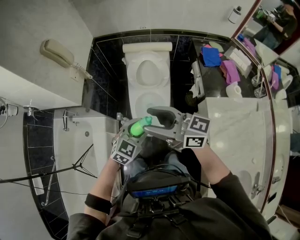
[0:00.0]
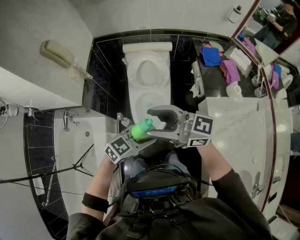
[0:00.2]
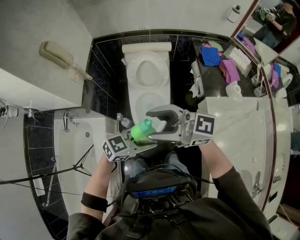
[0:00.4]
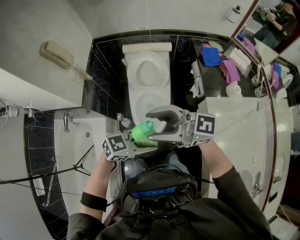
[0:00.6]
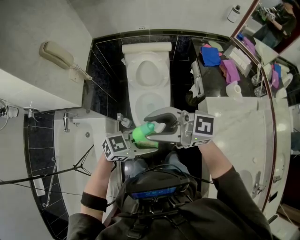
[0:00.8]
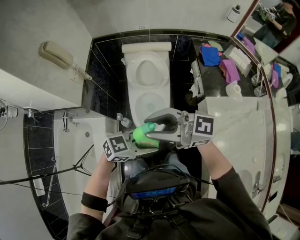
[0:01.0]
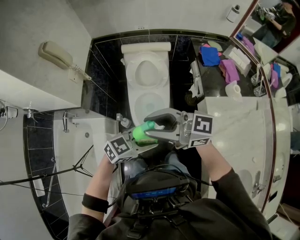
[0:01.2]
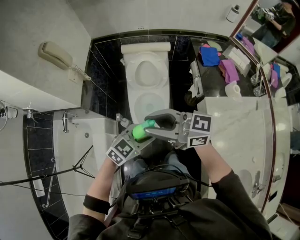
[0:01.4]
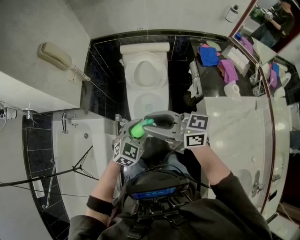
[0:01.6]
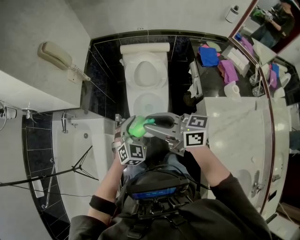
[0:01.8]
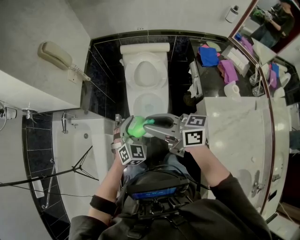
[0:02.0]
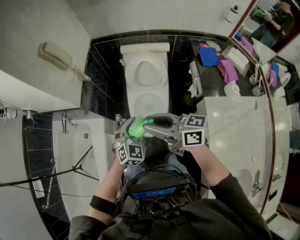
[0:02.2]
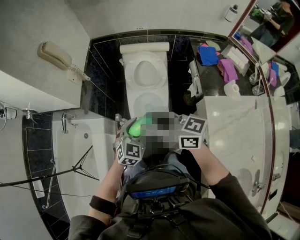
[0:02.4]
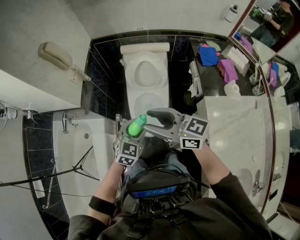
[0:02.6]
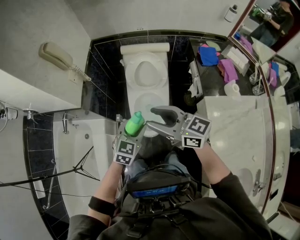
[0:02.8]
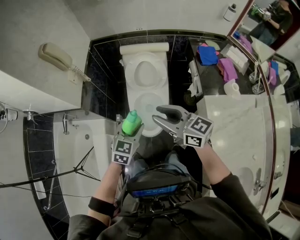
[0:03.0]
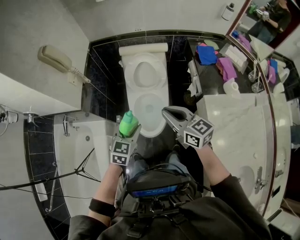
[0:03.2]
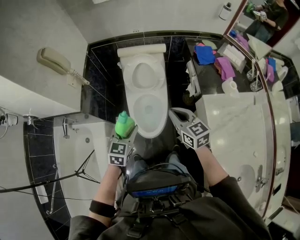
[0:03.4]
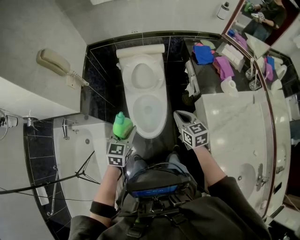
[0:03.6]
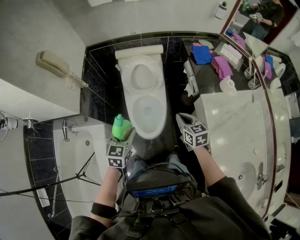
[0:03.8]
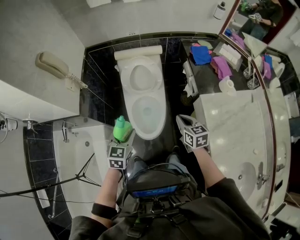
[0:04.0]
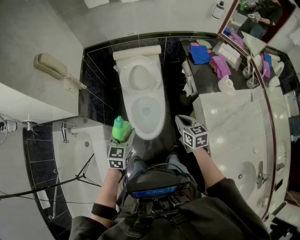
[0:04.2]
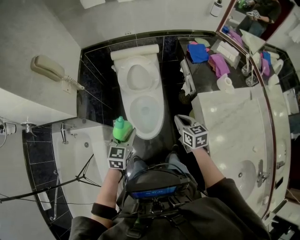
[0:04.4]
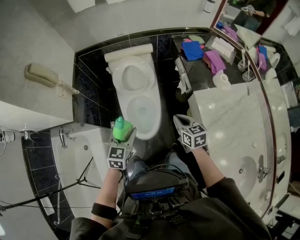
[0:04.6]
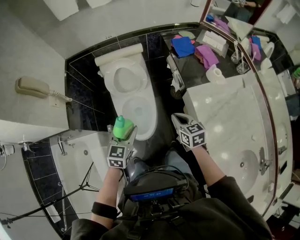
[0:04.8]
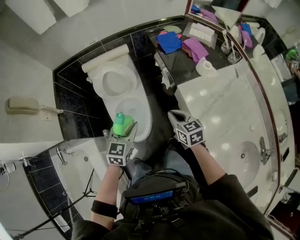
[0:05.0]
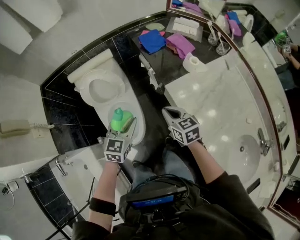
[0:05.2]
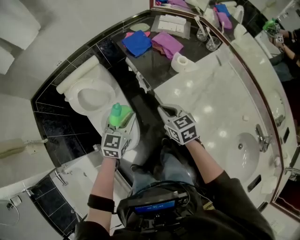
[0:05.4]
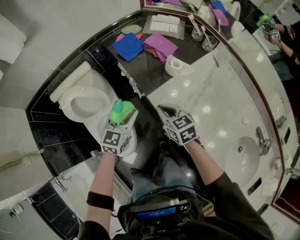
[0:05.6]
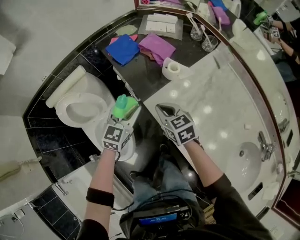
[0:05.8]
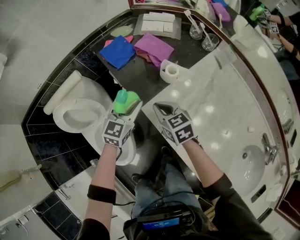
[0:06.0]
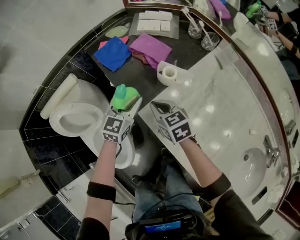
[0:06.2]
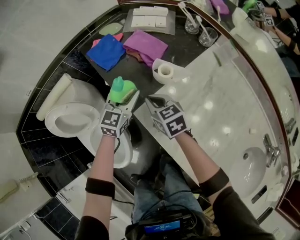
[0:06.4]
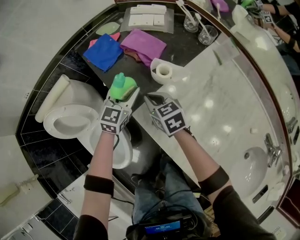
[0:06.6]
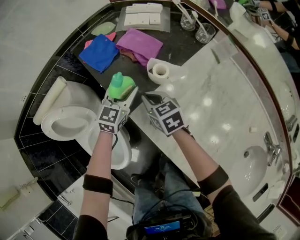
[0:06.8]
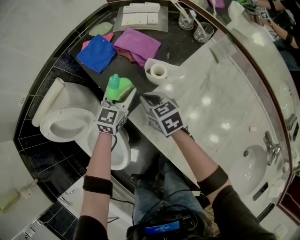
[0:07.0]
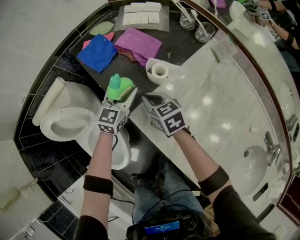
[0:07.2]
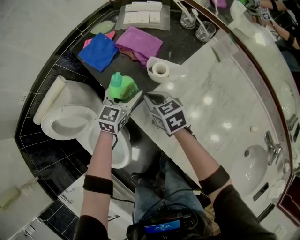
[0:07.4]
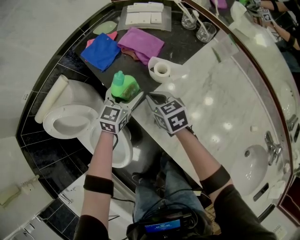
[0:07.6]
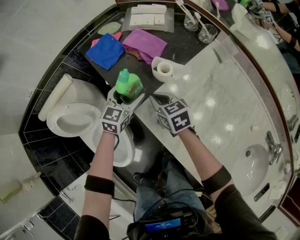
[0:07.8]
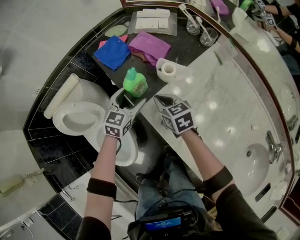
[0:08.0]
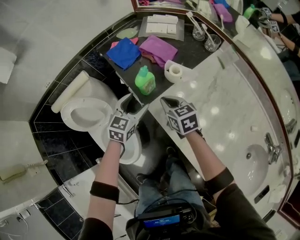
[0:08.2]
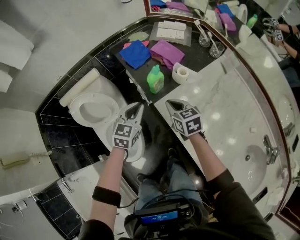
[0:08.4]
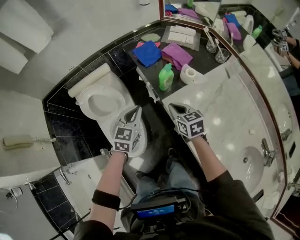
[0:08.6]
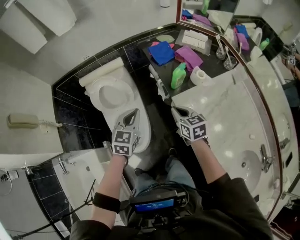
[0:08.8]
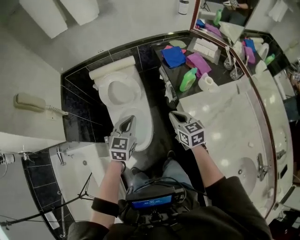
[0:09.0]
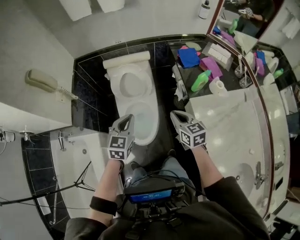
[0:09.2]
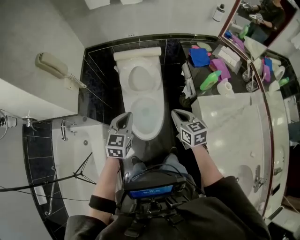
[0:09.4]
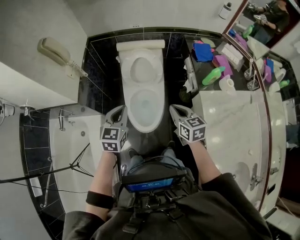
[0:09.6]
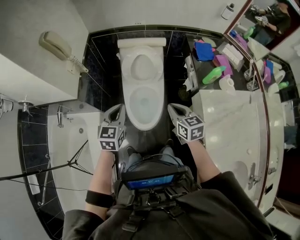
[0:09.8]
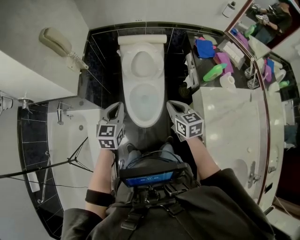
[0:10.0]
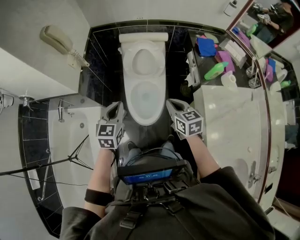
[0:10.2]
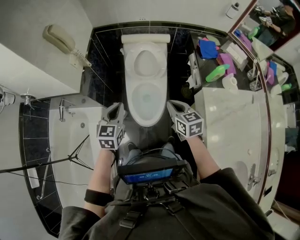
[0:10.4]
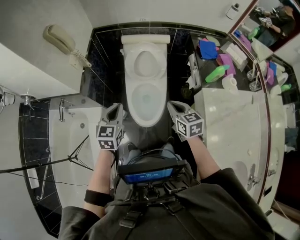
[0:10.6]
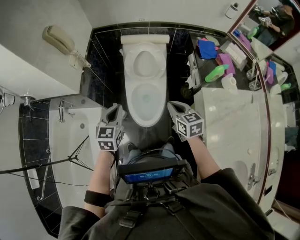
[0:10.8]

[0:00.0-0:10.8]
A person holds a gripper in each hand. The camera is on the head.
0:00.0 to 0:01.6: The right gripper closes its fingers.
0:01.6 to 0:03.0: The right gripper changes place by some 5 cm.
0:03.0 to 0:04.6: The right gripper heads downward and to the right, covering roughly 25 cm, turns by about 40 degrees, and closes.
0:04.6 to 0:06.2: The right gripper shifts by about 35 cm; the left gripper shifts by approximately 50 cm, and turns by approximately 40 degrees.
0:06.2 to 0:07.8: The left gripper moves roughly 5 cm, and opens up.
0:07.8 to 0:09.2: The left gripper ends up roughly 50 cm from where it was, turns by approximately 40 degrees, and closes its fingers. The right gripper changes place by some 35 cm, and rotates approximately 20 degrees.
0:09.2 to 0:10.8: Both grippers travel together to the left, roughly 15 cm.

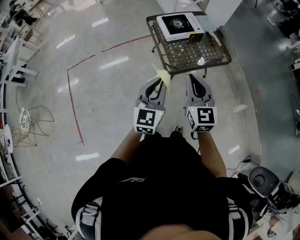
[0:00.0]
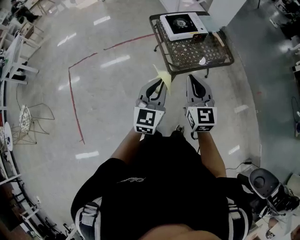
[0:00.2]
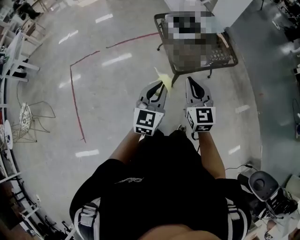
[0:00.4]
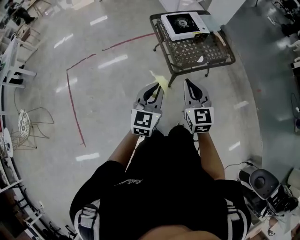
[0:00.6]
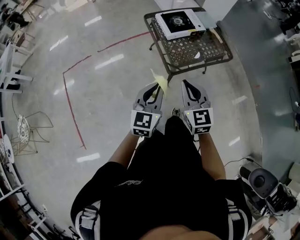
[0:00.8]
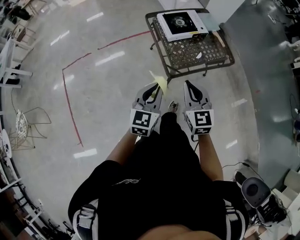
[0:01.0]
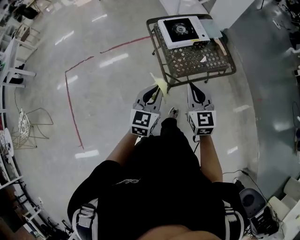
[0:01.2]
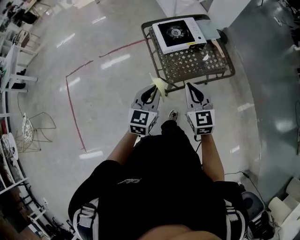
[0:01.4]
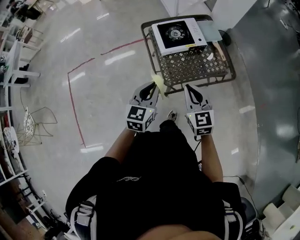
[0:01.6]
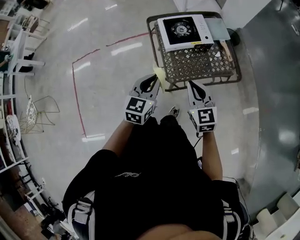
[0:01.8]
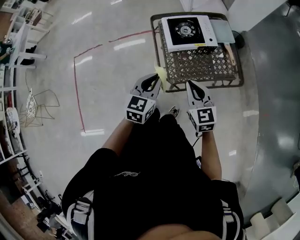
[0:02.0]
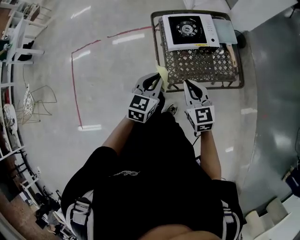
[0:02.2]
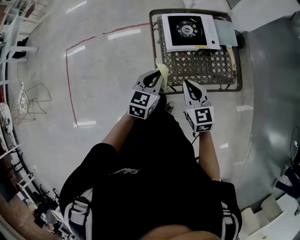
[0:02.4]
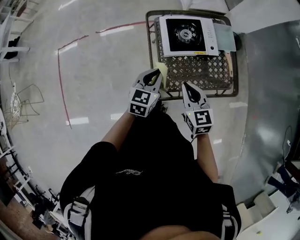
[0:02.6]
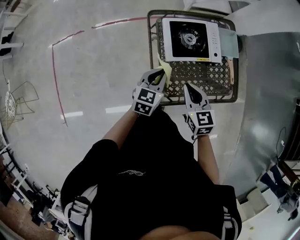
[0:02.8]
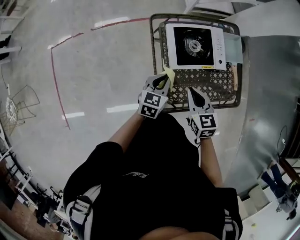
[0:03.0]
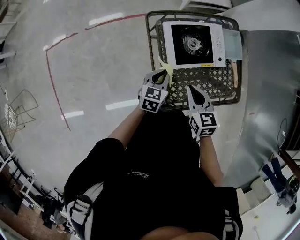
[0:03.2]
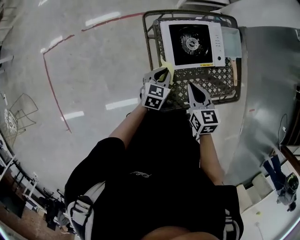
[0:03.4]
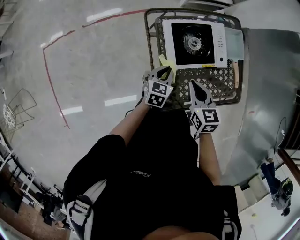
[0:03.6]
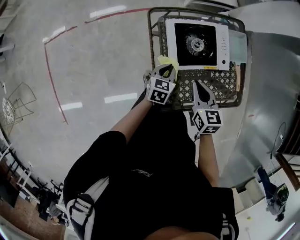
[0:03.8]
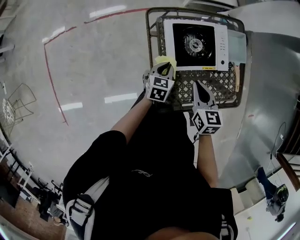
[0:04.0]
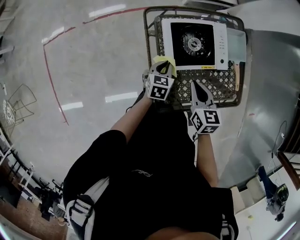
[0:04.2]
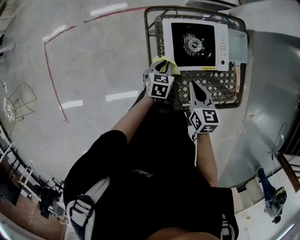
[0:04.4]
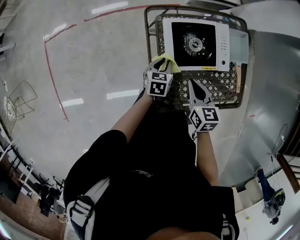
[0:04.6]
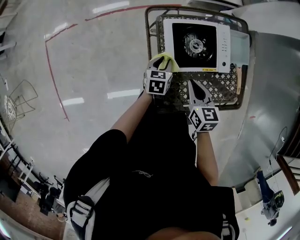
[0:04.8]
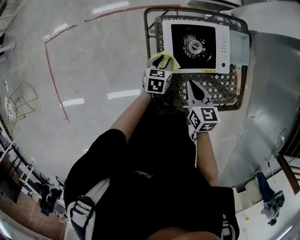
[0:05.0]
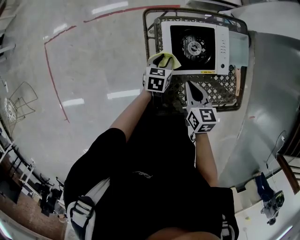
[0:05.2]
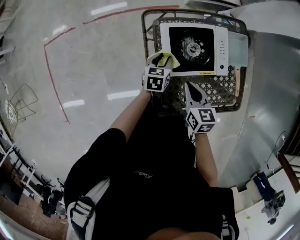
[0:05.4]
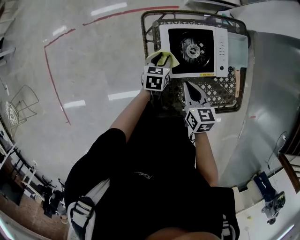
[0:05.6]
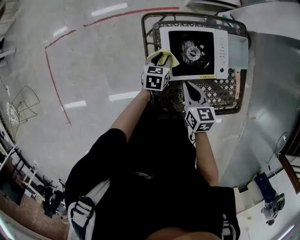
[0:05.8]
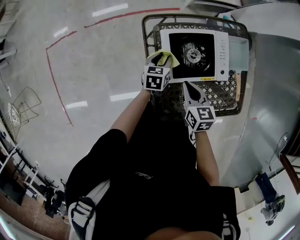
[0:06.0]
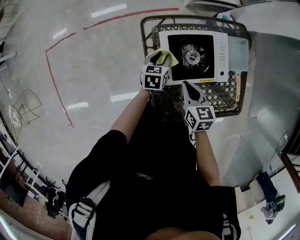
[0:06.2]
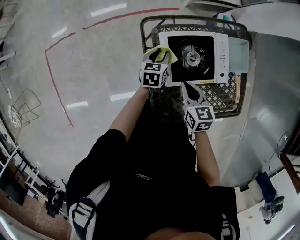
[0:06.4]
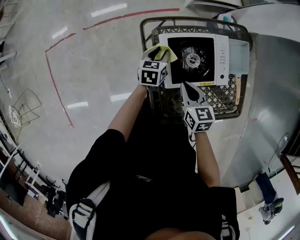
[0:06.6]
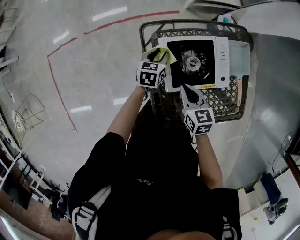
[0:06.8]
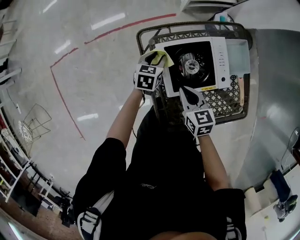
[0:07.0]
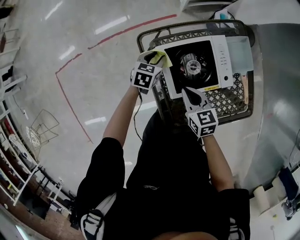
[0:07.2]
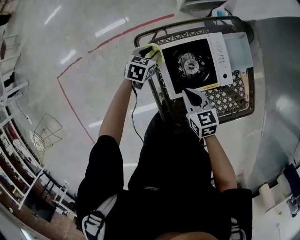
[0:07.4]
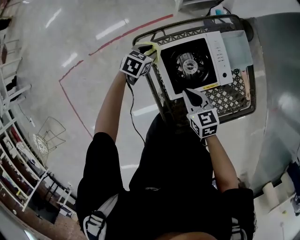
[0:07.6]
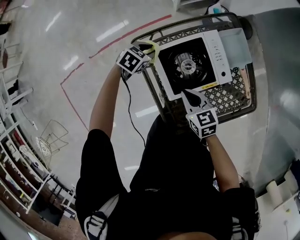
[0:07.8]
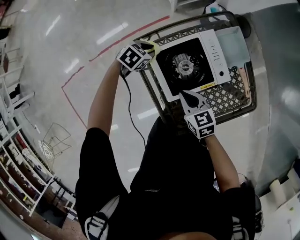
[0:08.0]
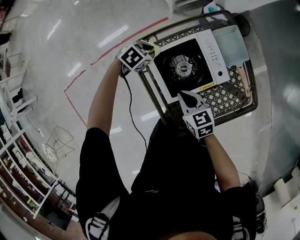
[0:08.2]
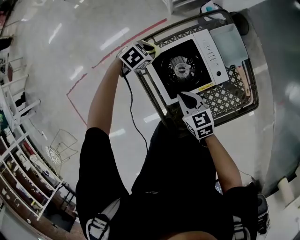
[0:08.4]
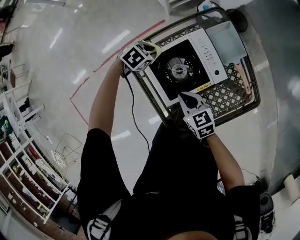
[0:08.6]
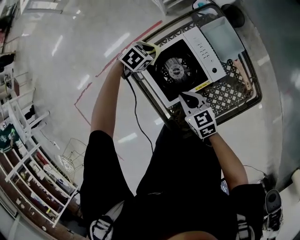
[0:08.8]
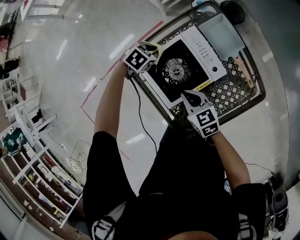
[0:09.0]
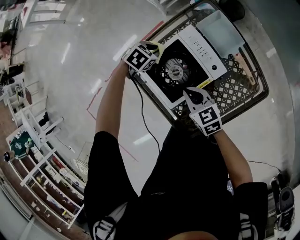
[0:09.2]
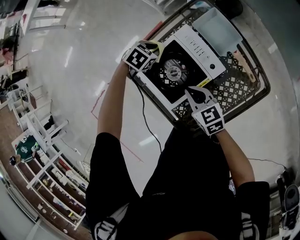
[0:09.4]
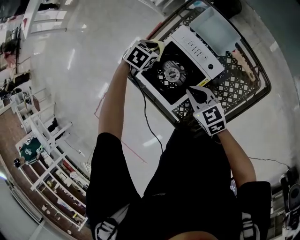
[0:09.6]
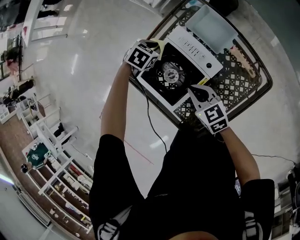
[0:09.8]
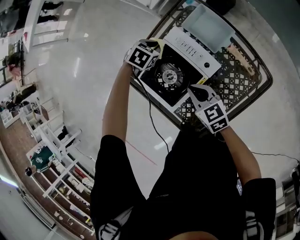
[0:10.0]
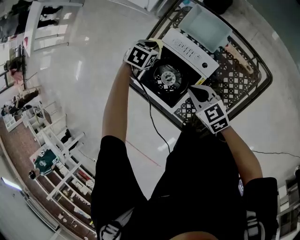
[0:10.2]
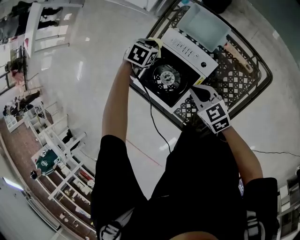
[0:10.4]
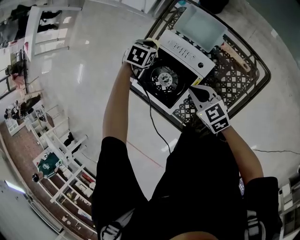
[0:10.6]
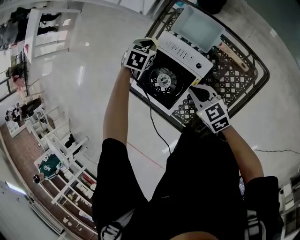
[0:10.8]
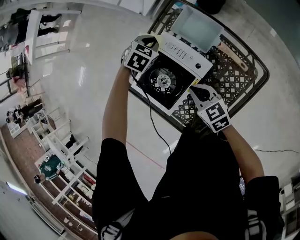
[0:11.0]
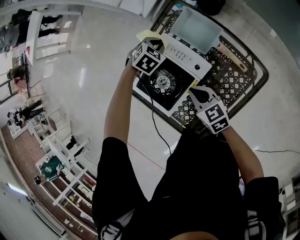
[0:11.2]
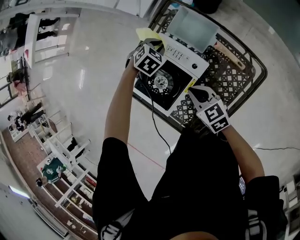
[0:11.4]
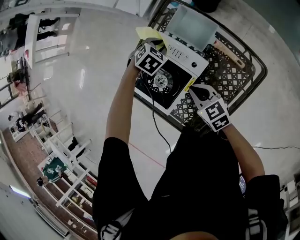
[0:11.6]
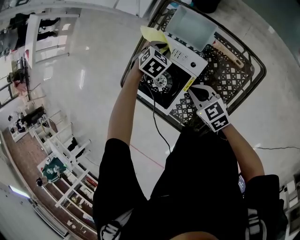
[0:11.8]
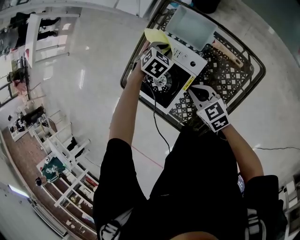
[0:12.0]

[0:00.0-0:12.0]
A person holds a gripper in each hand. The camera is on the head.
0:00.0 to 0:01.6: Both grippers move forward and downward, roughly 25 cm.
0:01.6 to 0:03.0: The two grippers go approximately 25 cm forward and downward. The right gripper changes its angle by some 20 degrees.
0:03.0 to 0:04.4: The right gripper travels forward and downward by about 10 cm. The left gripper heads downward and forward, covering about 15 cm.
0:04.4 to 0:06.0: The left gripper travels forward by roughly 10 cm, and opens up, while the right gripper shifts by about 5 cm.
0:06.0 to 0:07.6: The left gripper heads forward, covering approximately 10 cm, and changes its angle by roughly 40 degrees.
0:07.6 to 0:09.0: The left gripper shifts by approximately 10 cm, and changes its angle by some 30 degrees. The right gripper shifts by some 5 cm.
0:09.0 to 0:10.4: The left gripper travels to the right and forward by about 10 cm. The right gripper heads to the right, covering roughly 10 cm.
0:10.4 to 0:12.0: The left gripper moves to the right, roughly 10 cm.

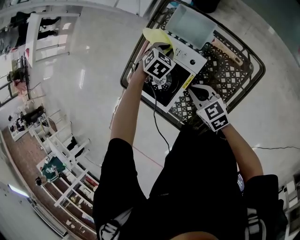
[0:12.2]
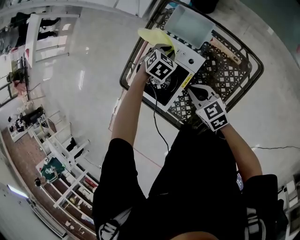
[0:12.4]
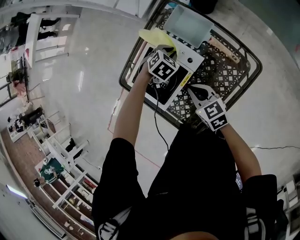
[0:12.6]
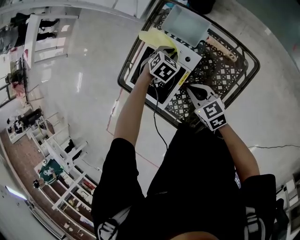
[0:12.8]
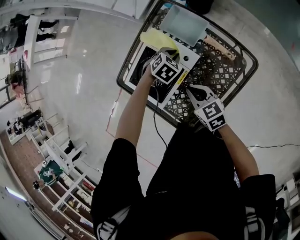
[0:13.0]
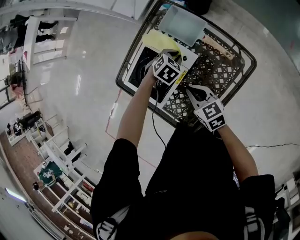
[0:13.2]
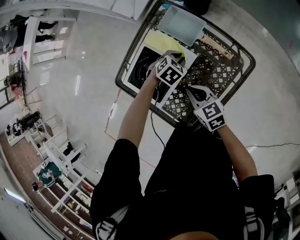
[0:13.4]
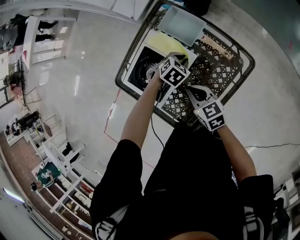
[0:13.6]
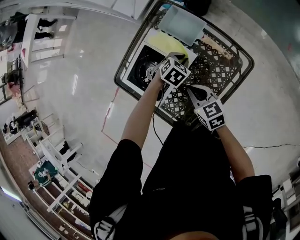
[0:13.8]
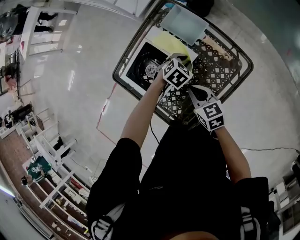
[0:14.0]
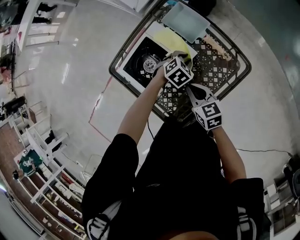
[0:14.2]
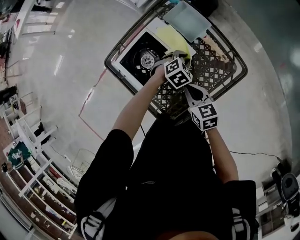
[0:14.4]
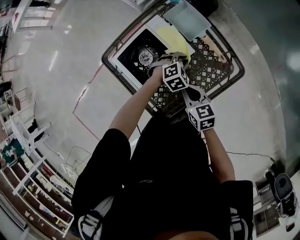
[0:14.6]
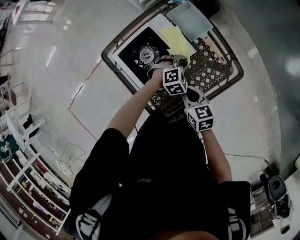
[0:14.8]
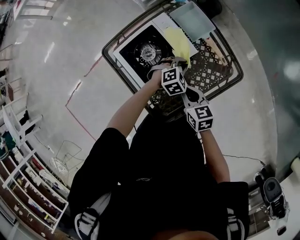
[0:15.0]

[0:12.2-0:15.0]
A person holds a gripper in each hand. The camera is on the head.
0:12.2 to 0:13.6: The left gripper is displaced to the right and backward by some 10 cm.
0:13.6 to 0:15.0: The left gripper travels backward by roughly 5 cm.
